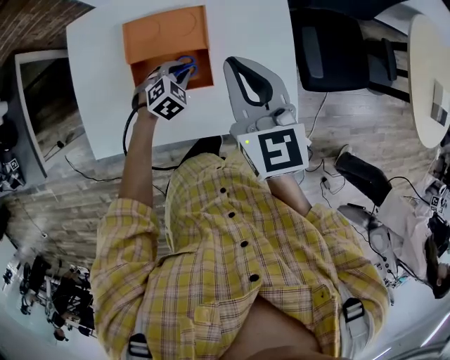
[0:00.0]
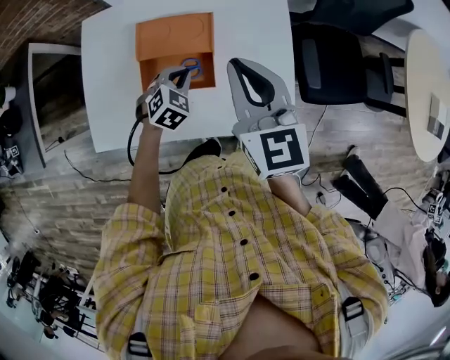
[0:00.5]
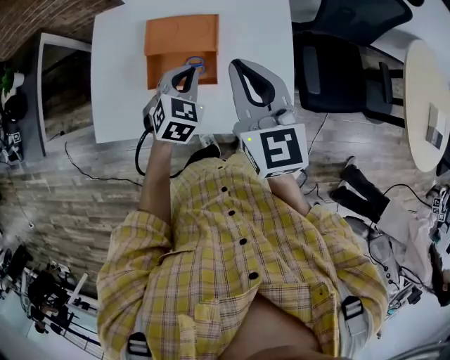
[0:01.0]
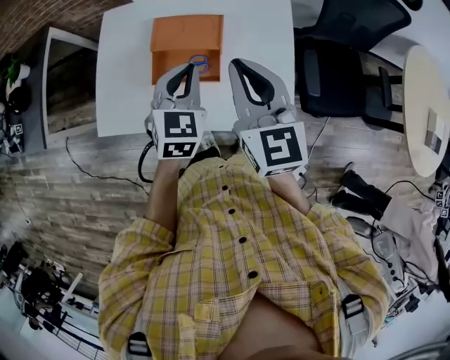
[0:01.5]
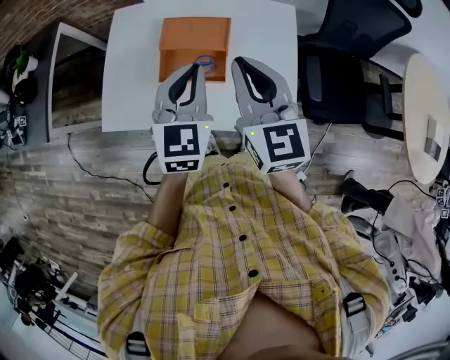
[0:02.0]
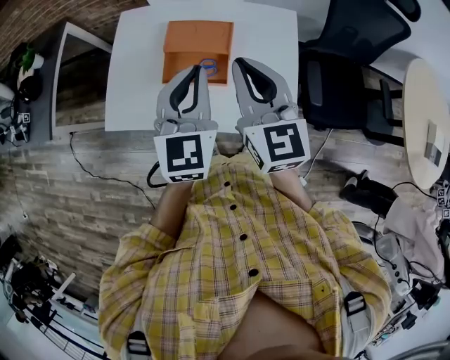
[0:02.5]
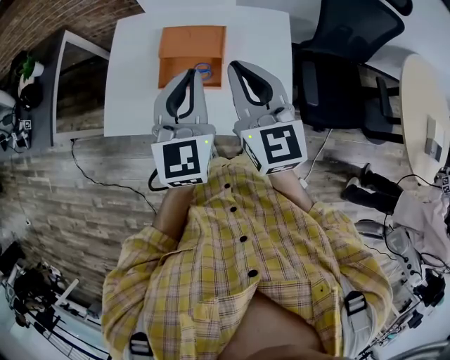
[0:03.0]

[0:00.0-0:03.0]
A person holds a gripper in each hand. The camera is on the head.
0:00.0 to 0:01.5: The right gripper is displaced upward and backward by roughly 10 cm. Meanwhile the left gripper is displaced upward by some 25 cm, and tilts its fingers some 30 degrees upward.
0:01.5 to 0:03.0: The left gripper shifts roughly 15 cm upward and backward, and swivels approximately 20 degrees.

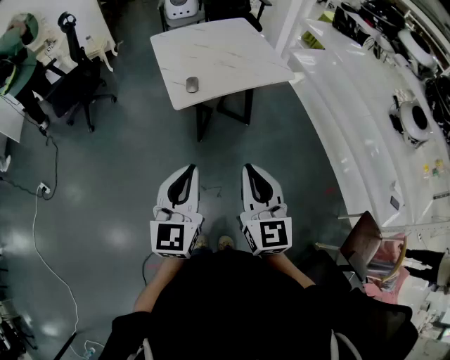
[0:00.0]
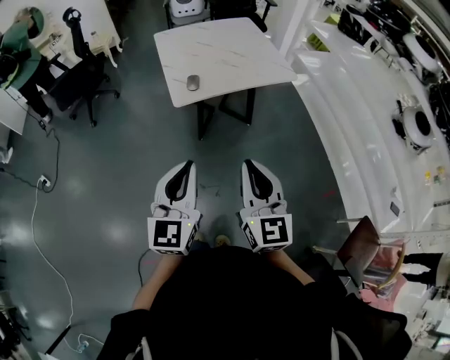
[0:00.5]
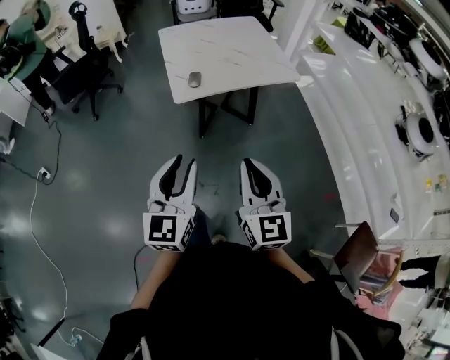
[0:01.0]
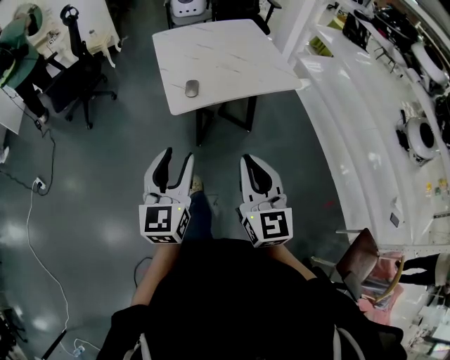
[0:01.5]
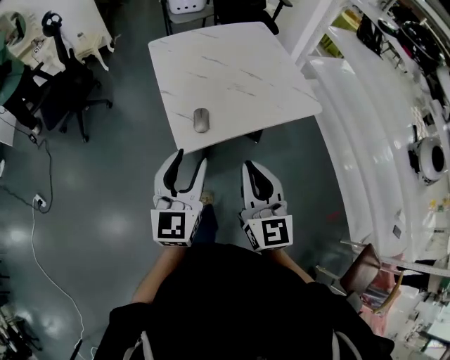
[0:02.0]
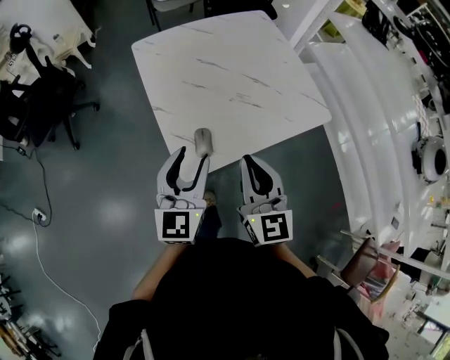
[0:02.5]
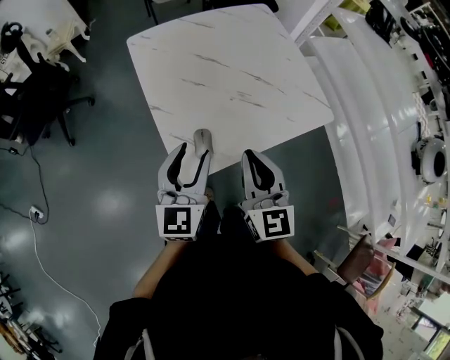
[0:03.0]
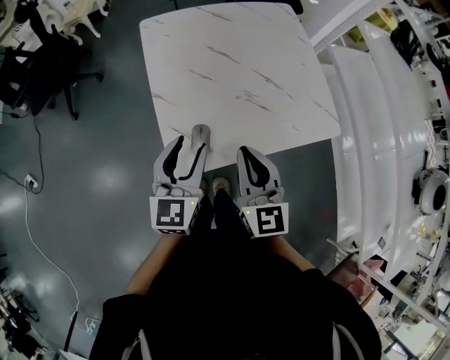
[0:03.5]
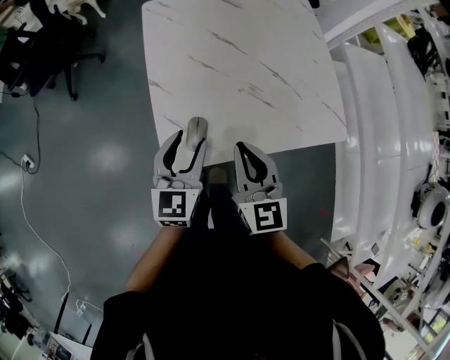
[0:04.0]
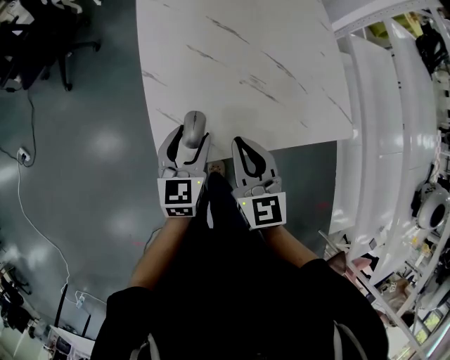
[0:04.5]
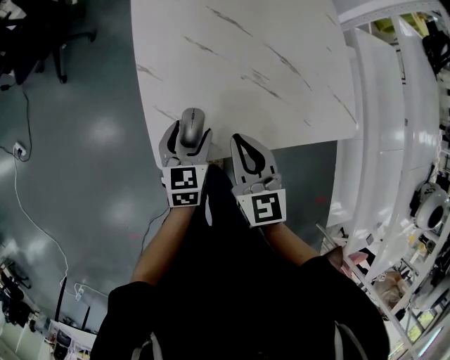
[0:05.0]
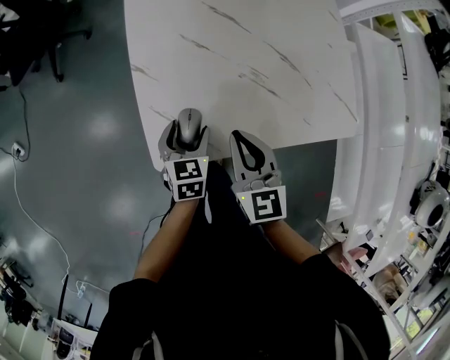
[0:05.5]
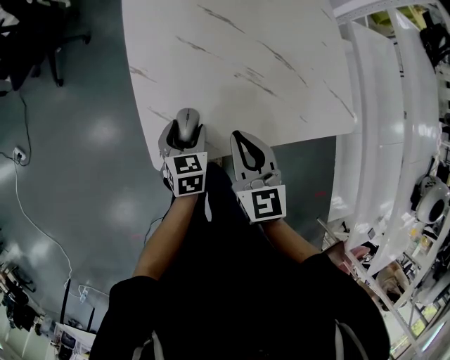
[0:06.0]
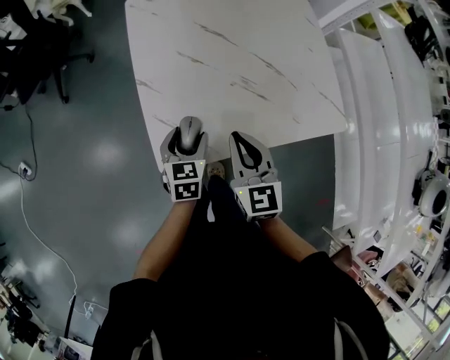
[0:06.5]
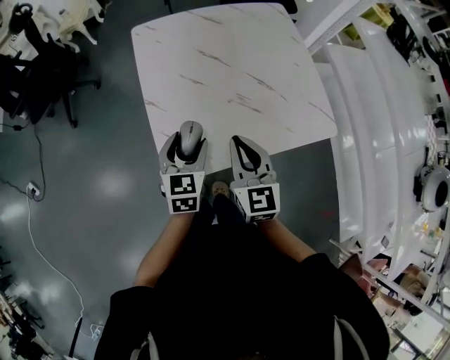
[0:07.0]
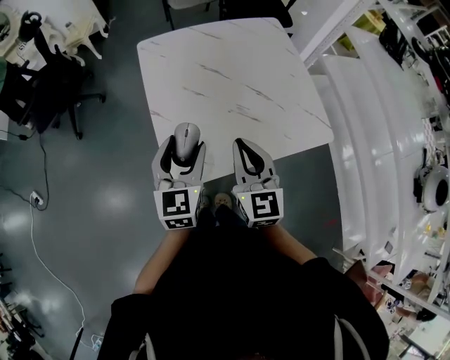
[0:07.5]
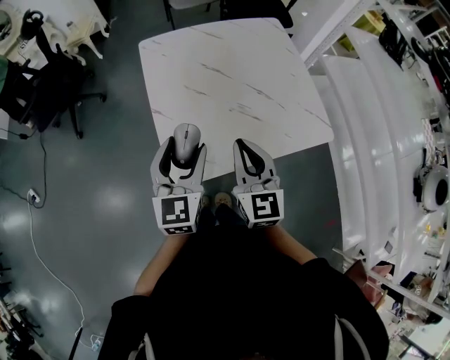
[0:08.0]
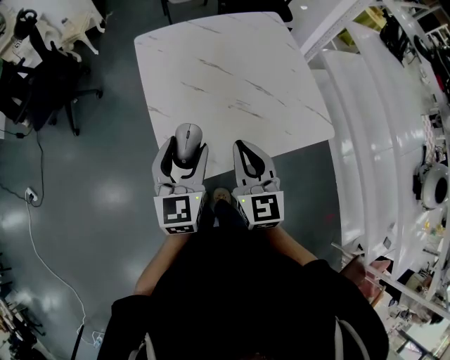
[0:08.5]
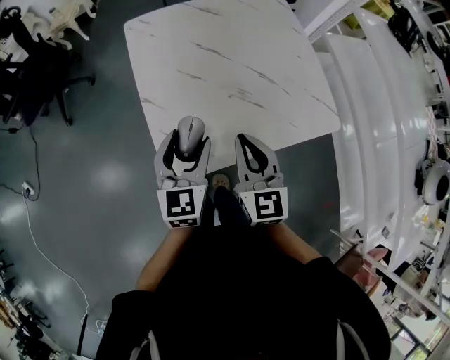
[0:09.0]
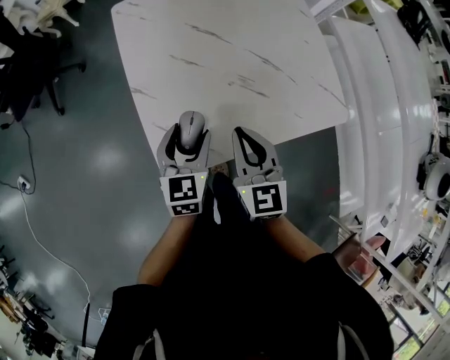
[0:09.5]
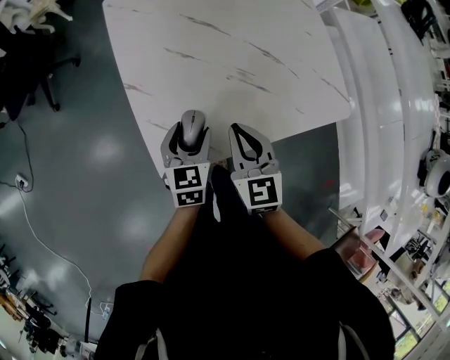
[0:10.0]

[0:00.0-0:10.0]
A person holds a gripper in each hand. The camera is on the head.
0:00.0 to 0:02.0: The two grippers go about 30 cm forward. The left gripper opens.
0:02.0 to 0:04.0: The grippers both shift forward and downward by approximately 25 cm.
0:04.0 to 0:06.0: The left gripper is displaced downward by about 15 cm, and rotates roughly 30 degrees; the right gripper moves downward, some 5 cm.
0:06.0 to 0:08.0: The left gripper heads upward, covering roughly 25 cm, and angles its fingers upward, by roughly 30 degrees; the right gripper heads upward, covering roughly 10 cm.
0:08.0 to 0:10.0: The left gripper travels downward by roughly 20 cm, and changes its angle by approximately 30 degrees. The right gripper moves downward, approximately 15 cm.

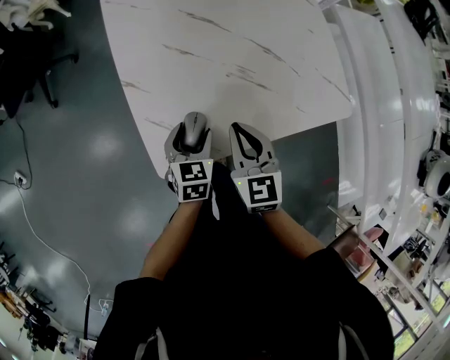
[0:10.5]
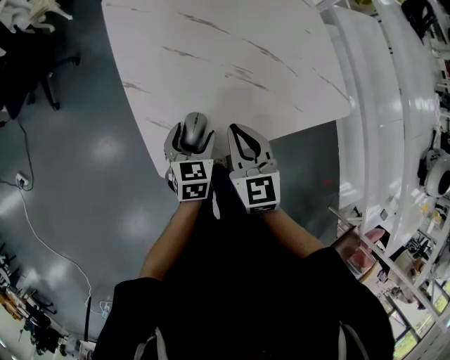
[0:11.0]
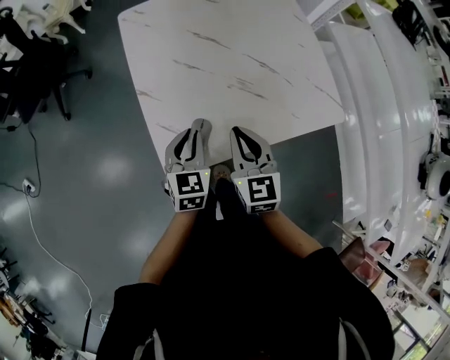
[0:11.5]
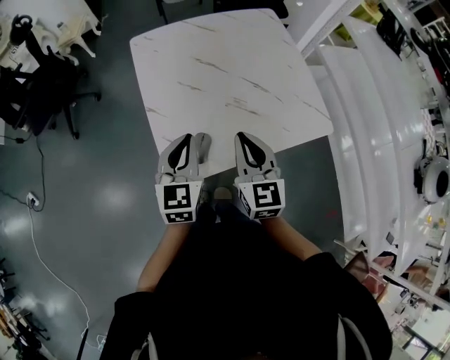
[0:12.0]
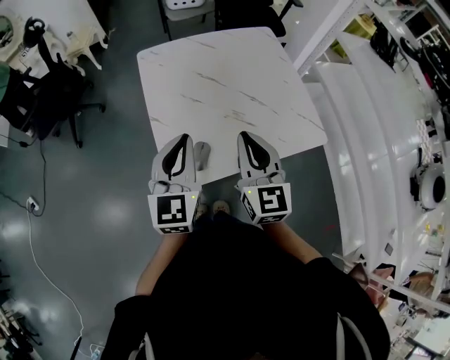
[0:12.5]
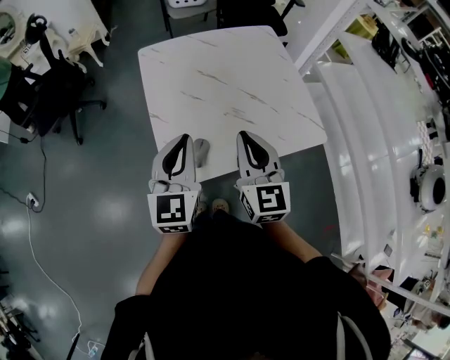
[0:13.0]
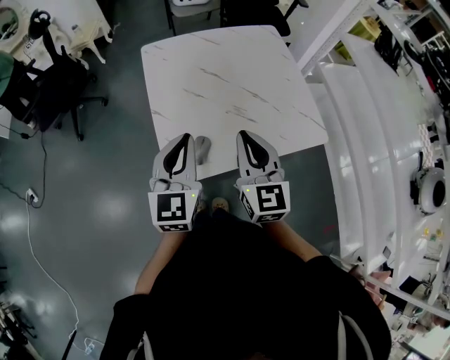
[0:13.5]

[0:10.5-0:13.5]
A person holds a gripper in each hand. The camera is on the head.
0:10.5 to 0:12.0: The right gripper goes some 10 cm upward, while the left gripper travels upward by approximately 20 cm, changes its angle by some 30 degrees, and closes its fingers.
0:12.0 to 0:13.5: The grippers both shift upward by approximately 10 cm.

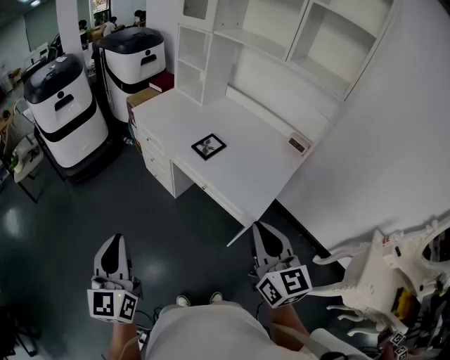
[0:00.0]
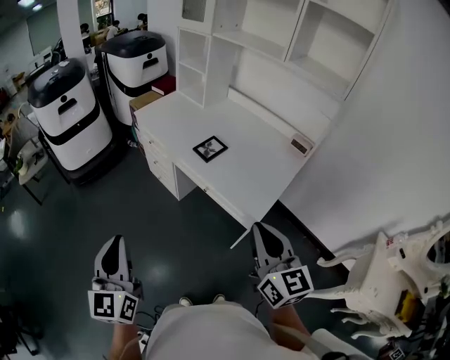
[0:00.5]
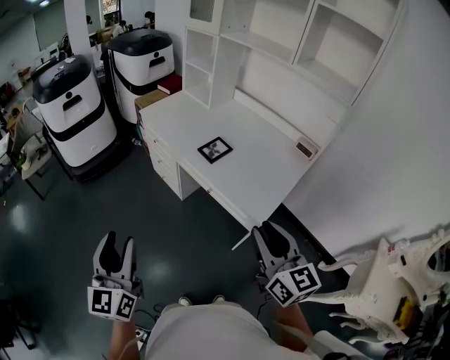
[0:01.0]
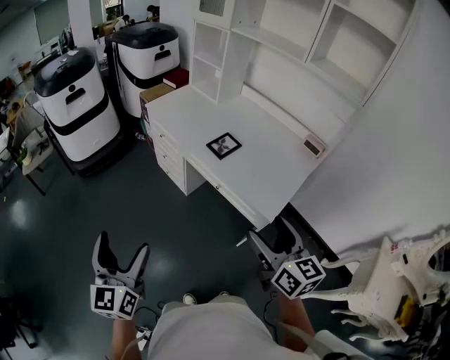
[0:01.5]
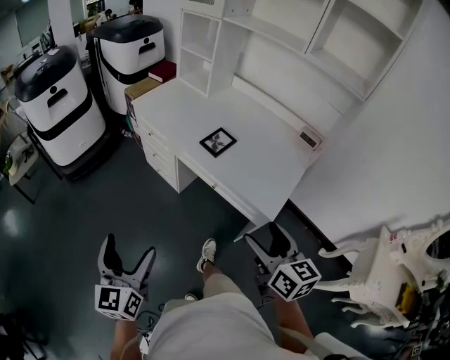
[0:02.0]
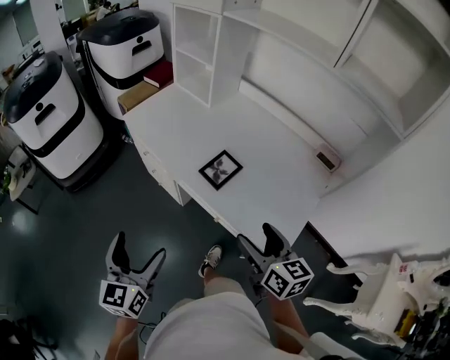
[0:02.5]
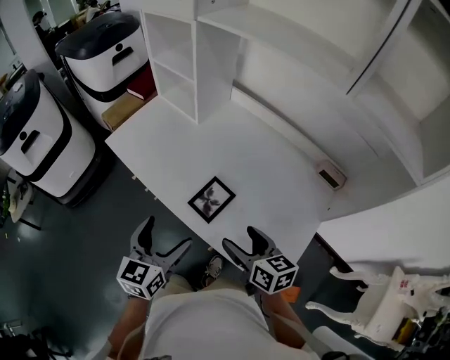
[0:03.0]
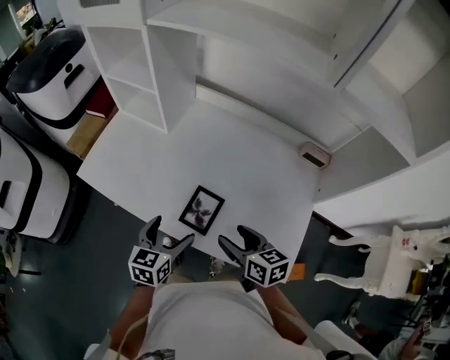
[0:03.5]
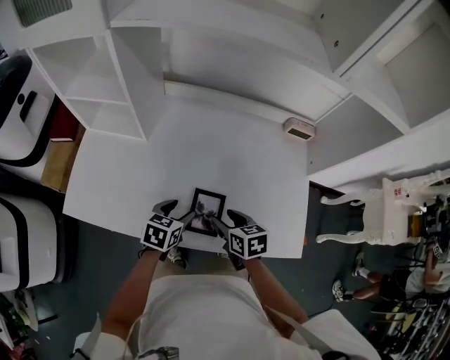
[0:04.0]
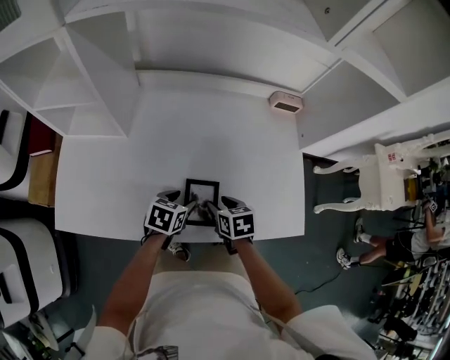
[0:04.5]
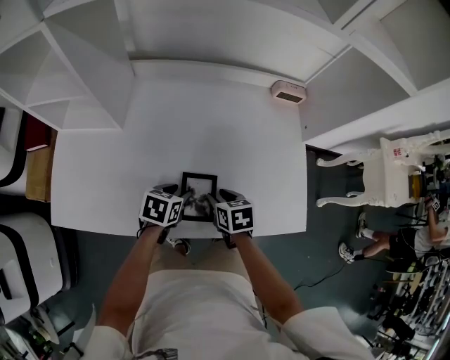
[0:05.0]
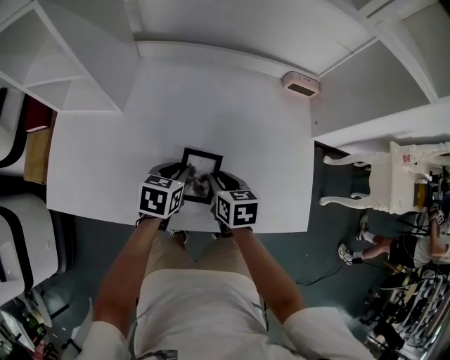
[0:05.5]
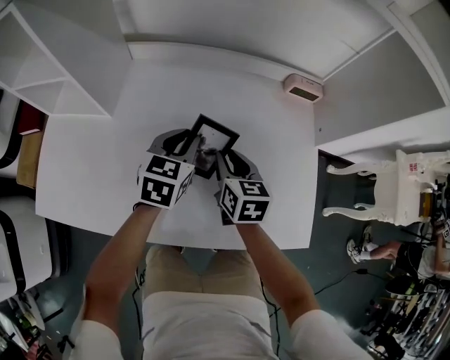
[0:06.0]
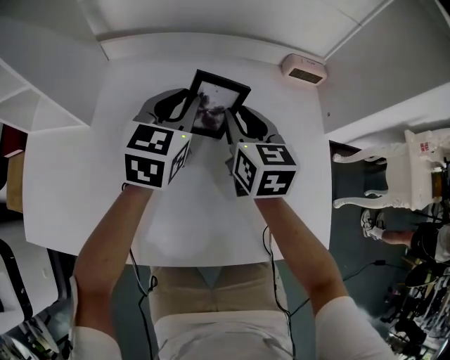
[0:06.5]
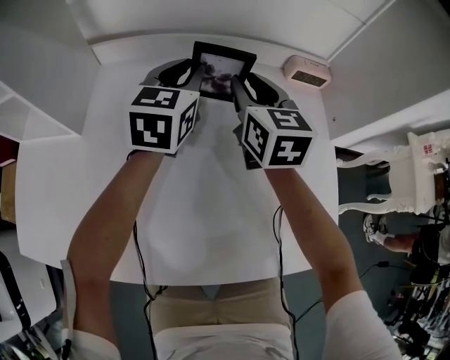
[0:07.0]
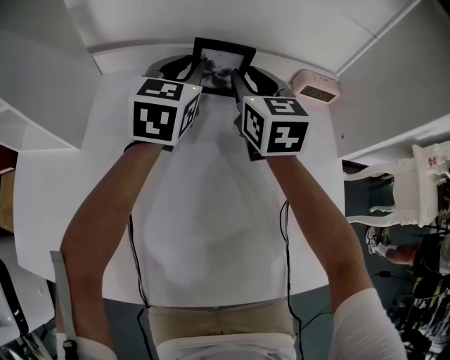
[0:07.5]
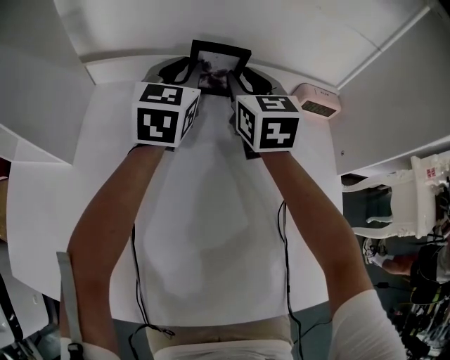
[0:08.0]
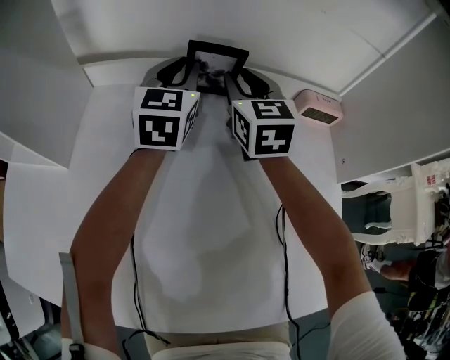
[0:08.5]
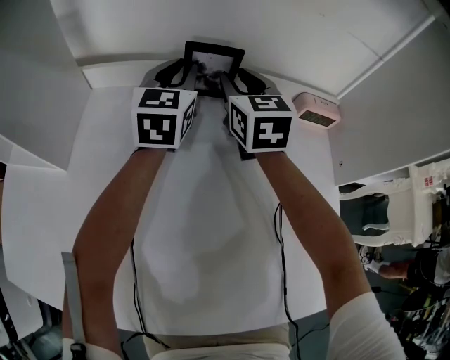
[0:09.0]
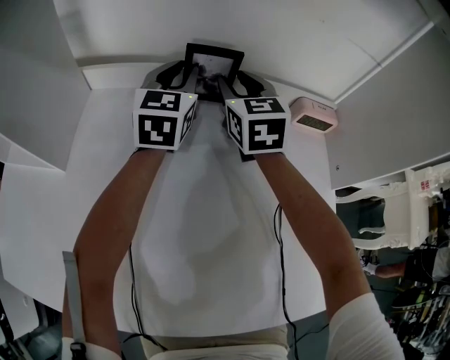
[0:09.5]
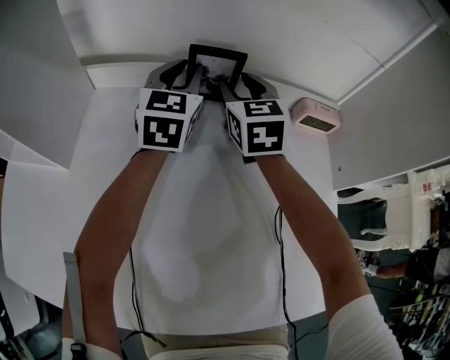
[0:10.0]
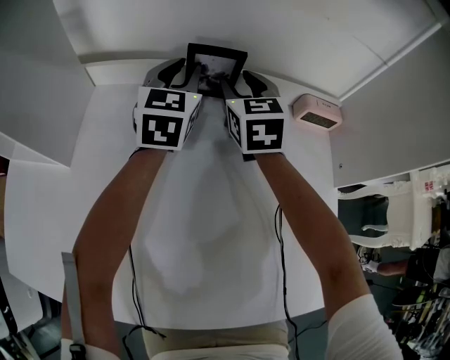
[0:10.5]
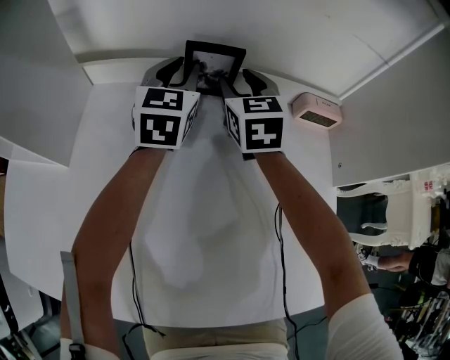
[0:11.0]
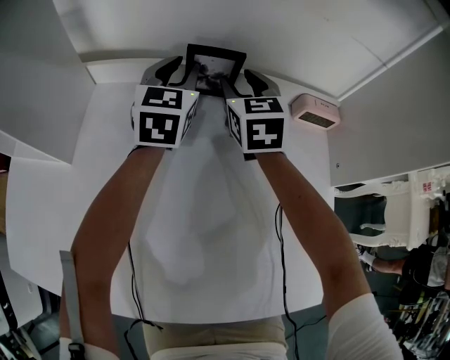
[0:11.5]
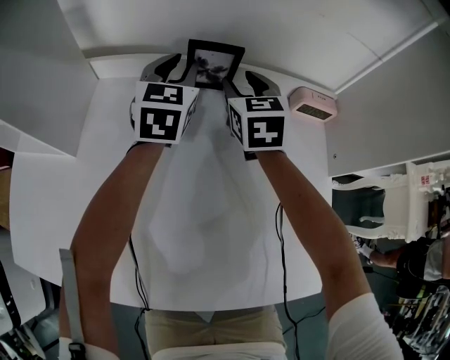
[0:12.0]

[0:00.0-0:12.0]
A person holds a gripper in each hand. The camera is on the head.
0:00.0 to 0:02.0: Both grippers move downward and forward, about 10 cm. The left gripper opens its fingers. The right gripper opens.
0:02.0 to 0:04.0: The two grippers travel together, roughly 50 cm. The right gripper tips its fingers downward by some 30 degrees, and closes. The left gripper tips its fingers downward by approximately 40 degrees, and closes up.
0:04.0 to 0:06.0: The left gripper moves forward and to the right, about 15 cm, and closes; the right gripper is displaced forward by some 15 cm, and changes its angle by approximately 20 degrees.
0:06.0 to 0:08.0: The grippers both shift forward by approximately 25 cm. The left gripper swivels roughly 20 degrees. The right gripper turns by approximately 30 degrees.
0:08.0 to 0:12.0: The grippers stay close to where they were, moving slightly.
